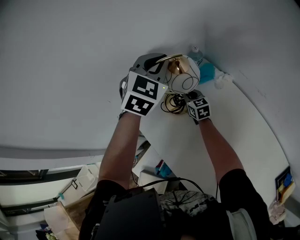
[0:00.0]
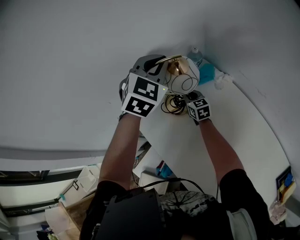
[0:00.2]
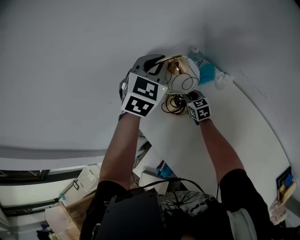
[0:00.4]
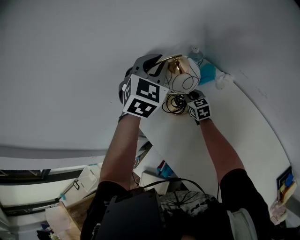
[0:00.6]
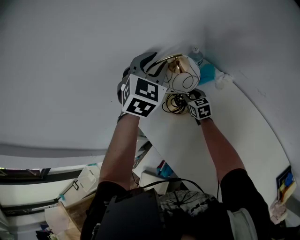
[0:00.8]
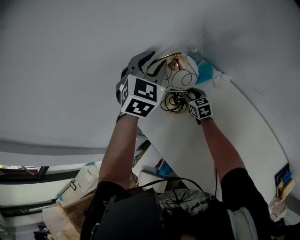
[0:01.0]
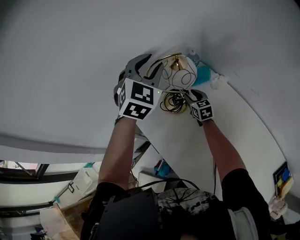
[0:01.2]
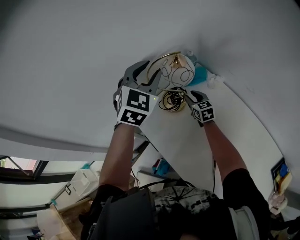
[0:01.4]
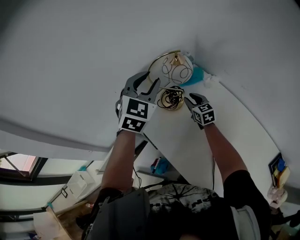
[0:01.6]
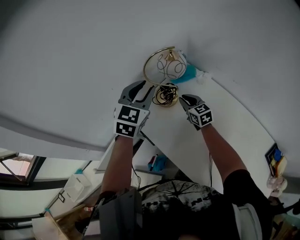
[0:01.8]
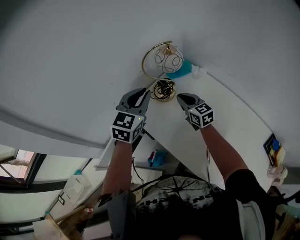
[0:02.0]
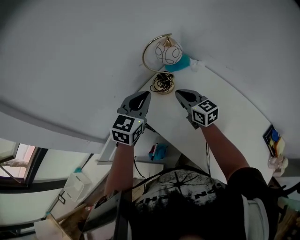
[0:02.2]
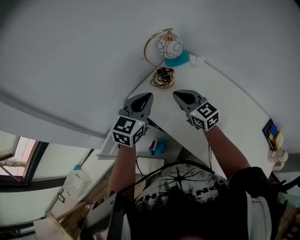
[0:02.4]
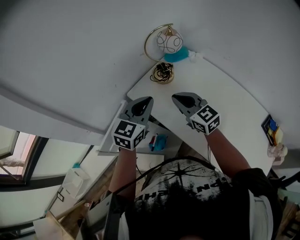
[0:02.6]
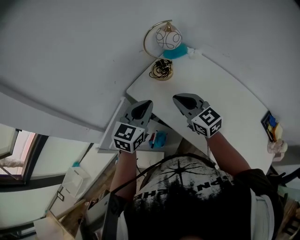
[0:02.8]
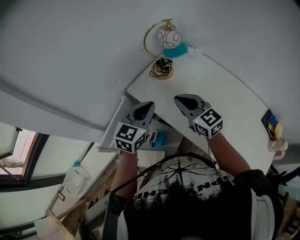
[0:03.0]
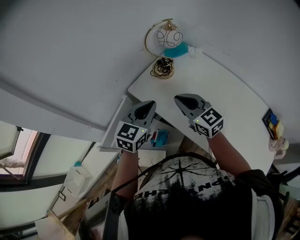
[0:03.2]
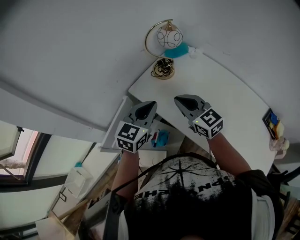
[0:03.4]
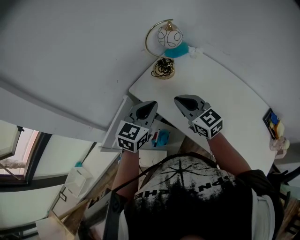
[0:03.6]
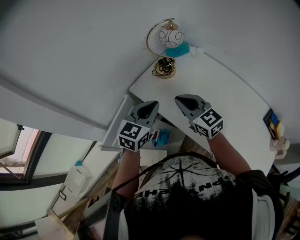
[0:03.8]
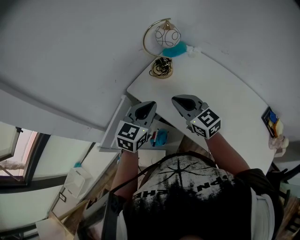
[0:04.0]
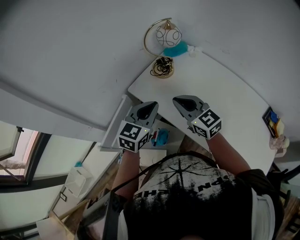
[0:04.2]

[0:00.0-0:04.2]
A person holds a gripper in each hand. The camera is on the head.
0.0 to 1.4 s: Both grippers move backward, about 5 cm. The left gripper opens; the right gripper opens.
1.4 to 2.8 s: The left gripper is displaced backward and downward by about 30 cm, turns by some 40 degrees, and closes its fingers. The right gripper shifts about 35 cm backward and upward, and closes.
2.8 to 4.2 s: There are only small adjustments of the grippers.

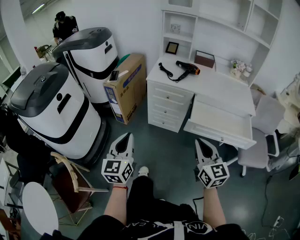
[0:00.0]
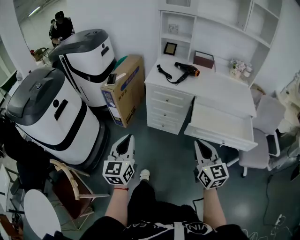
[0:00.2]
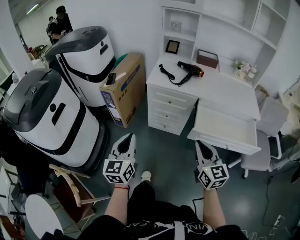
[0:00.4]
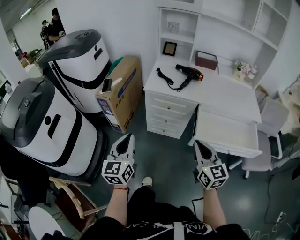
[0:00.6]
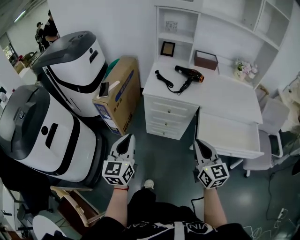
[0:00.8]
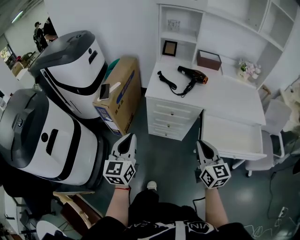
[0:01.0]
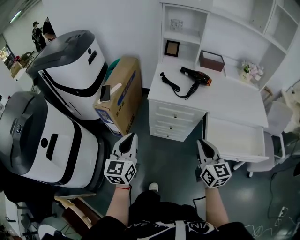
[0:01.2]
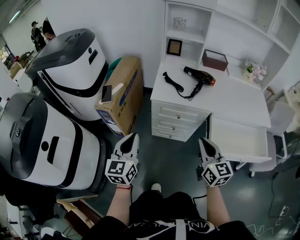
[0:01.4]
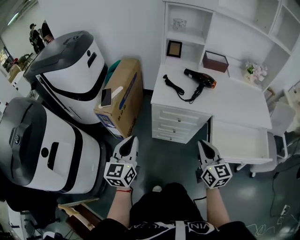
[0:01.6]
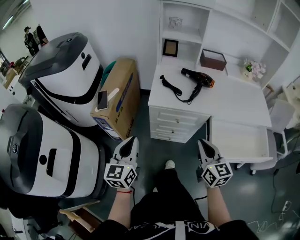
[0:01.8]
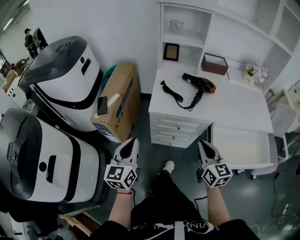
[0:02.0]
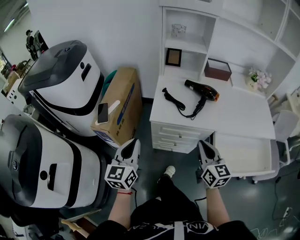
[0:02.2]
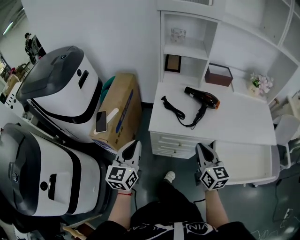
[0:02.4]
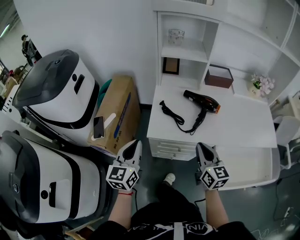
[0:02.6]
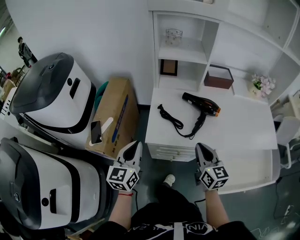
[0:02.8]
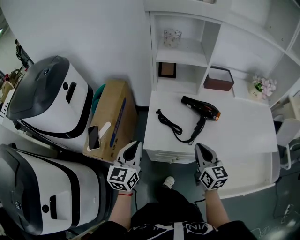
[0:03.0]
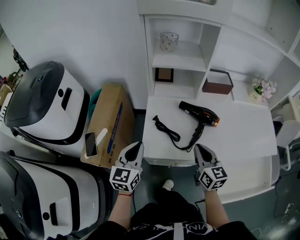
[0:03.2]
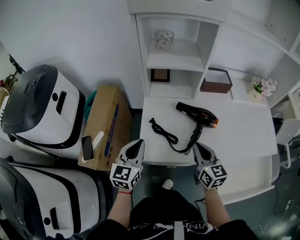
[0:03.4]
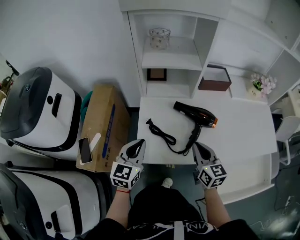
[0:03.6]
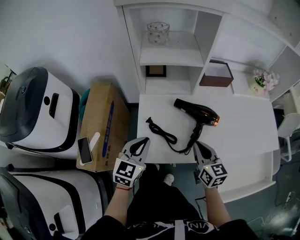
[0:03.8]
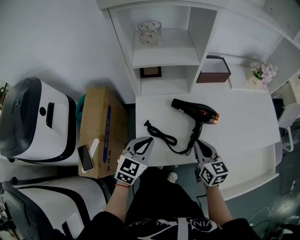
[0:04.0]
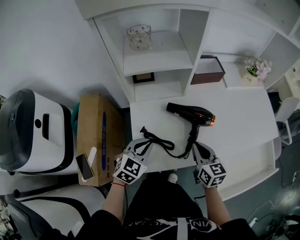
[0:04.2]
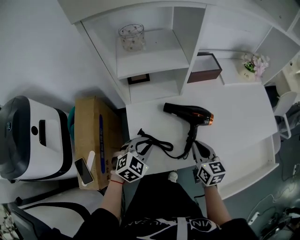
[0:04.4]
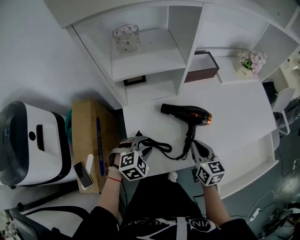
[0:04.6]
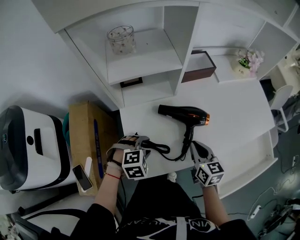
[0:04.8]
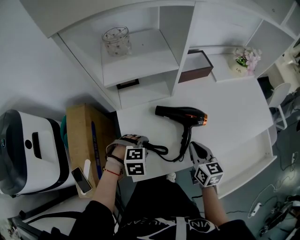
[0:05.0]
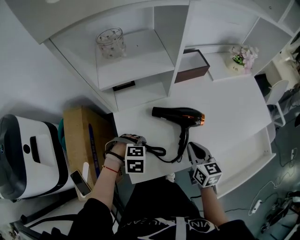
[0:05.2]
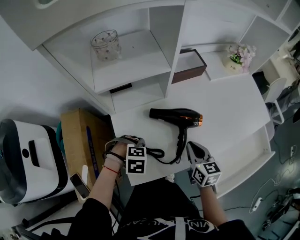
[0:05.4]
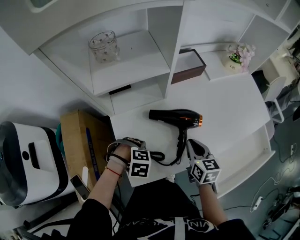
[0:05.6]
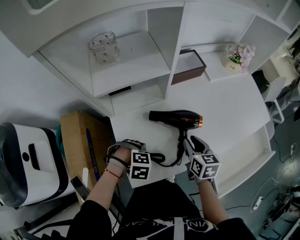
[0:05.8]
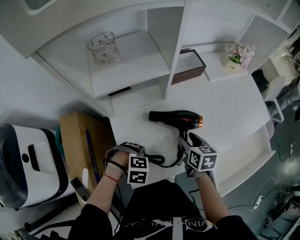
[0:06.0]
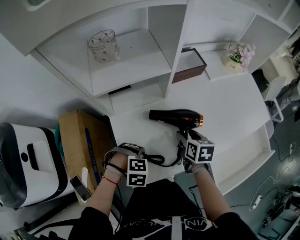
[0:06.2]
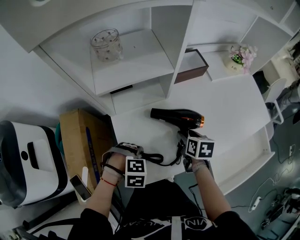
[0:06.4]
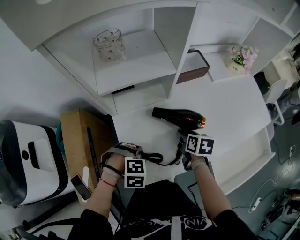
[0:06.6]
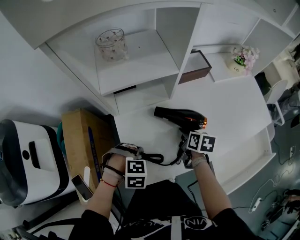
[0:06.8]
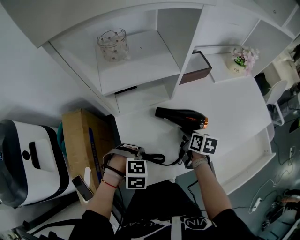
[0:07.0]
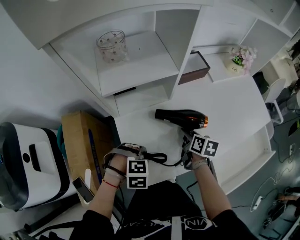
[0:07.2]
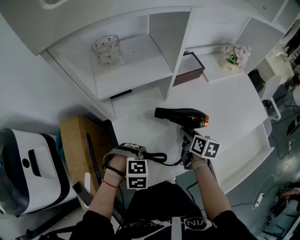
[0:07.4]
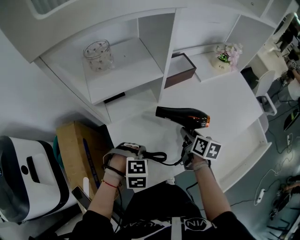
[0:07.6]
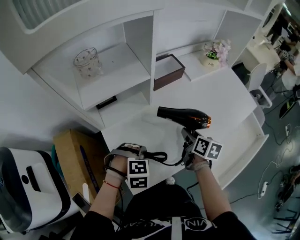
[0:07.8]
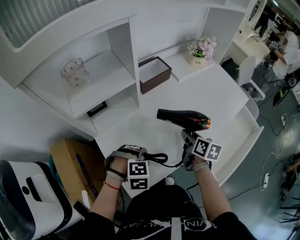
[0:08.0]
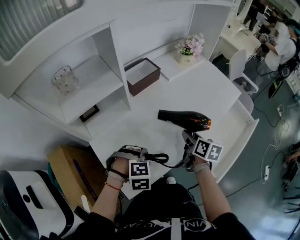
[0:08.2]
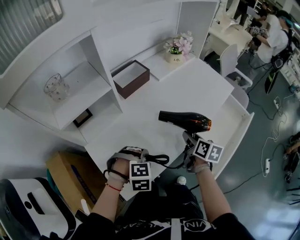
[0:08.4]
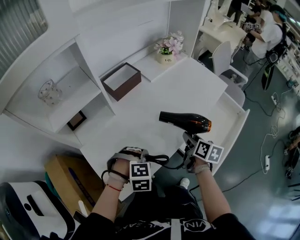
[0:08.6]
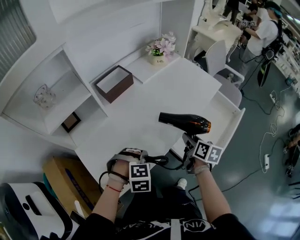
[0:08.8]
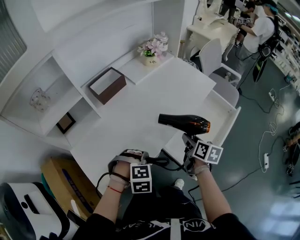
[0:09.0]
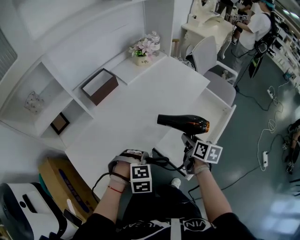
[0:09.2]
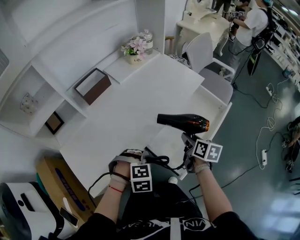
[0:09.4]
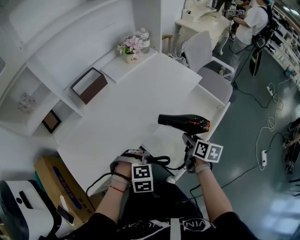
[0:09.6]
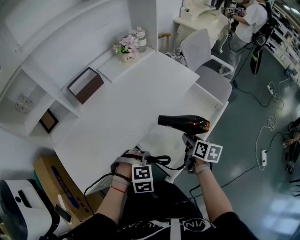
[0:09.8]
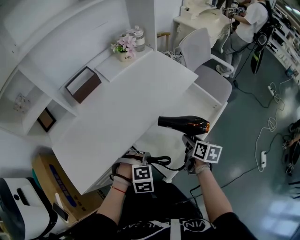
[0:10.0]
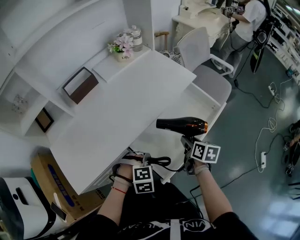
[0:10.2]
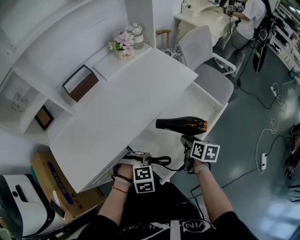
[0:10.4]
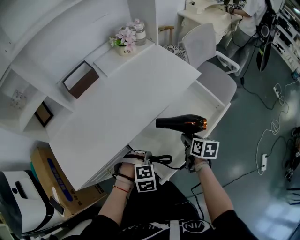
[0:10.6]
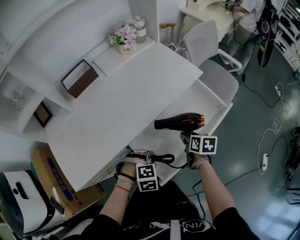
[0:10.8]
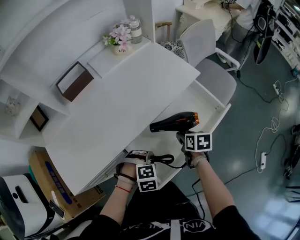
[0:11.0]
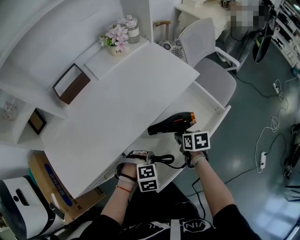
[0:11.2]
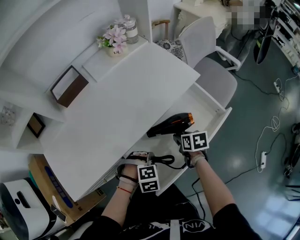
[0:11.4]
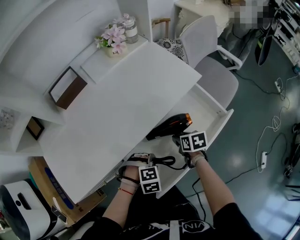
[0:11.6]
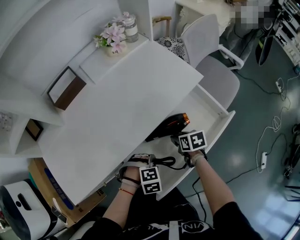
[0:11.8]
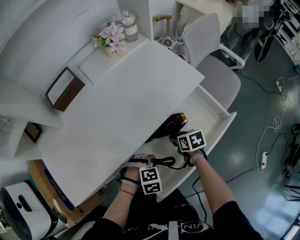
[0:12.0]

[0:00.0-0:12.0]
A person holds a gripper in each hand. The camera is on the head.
0.0 to 1.6 s: The grippers both shift forward by roughly 30 cm.
1.6 to 3.0 s: Both grippers move forward, approximately 25 cm.
3.0 to 4.4 s: The right gripper ends up approximately 15 cm from where it was, while the left gripper shifts by approximately 20 cm, and tips its fingers downward by roughly 30 degrees.
4.4 to 6.0 s: The right gripper moves some 5 cm, turns by about 20 degrees, and opens up. Meanwhile the left gripper shifts approximately 5 cm downward, tips its fingers downward by approximately 40 degrees, and opens.
6.0 to 7.6 s: The right gripper turns by approximately 20 degrees; the left gripper changes place by approximately 5 cm.
7.6 to 9.0 s: The right gripper ends up some 30 cm from where it was, and turns by approximately 20 degrees. Meanwhile the left gripper ends up roughly 25 cm from where it was.
9.0 to 10.4 s: The grippers both shift to the right by roughly 20 cm.
10.4 to 12.0 s: The right gripper ends up approximately 15 cm from where it was, and rotates about 30 degrees; the left gripper ends up roughly 10 cm from where it was.

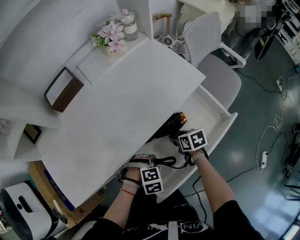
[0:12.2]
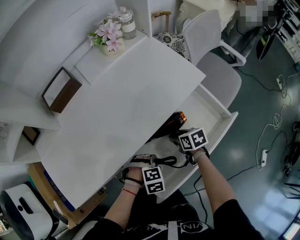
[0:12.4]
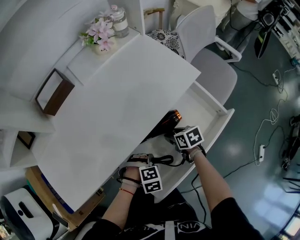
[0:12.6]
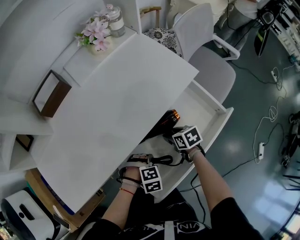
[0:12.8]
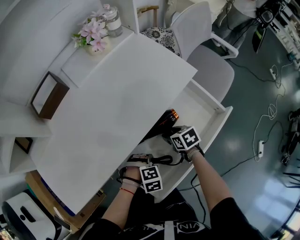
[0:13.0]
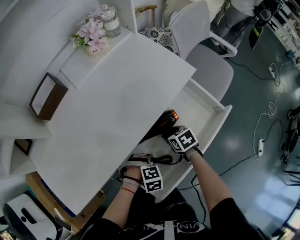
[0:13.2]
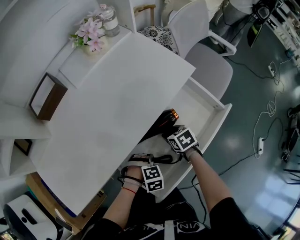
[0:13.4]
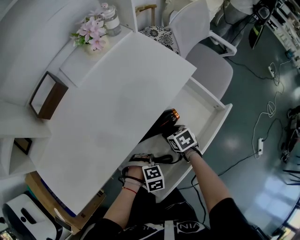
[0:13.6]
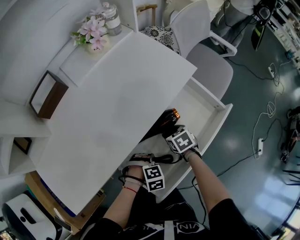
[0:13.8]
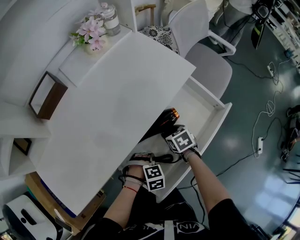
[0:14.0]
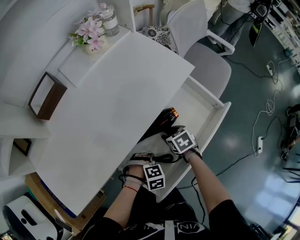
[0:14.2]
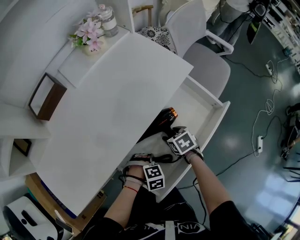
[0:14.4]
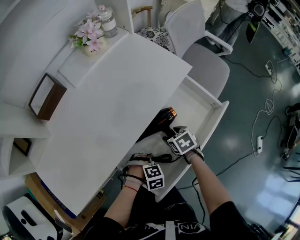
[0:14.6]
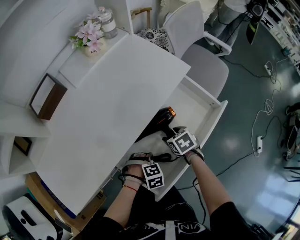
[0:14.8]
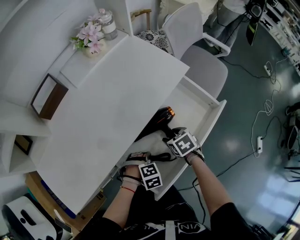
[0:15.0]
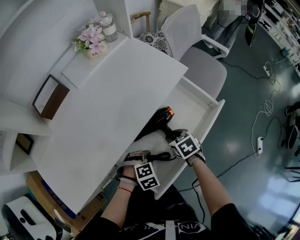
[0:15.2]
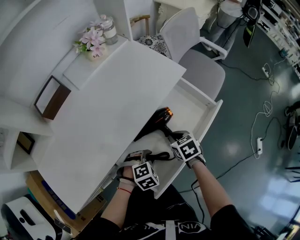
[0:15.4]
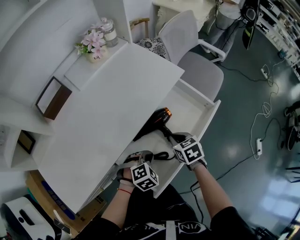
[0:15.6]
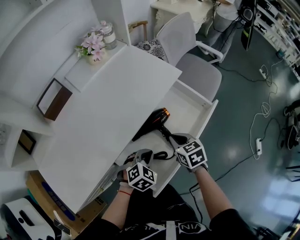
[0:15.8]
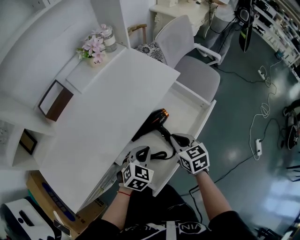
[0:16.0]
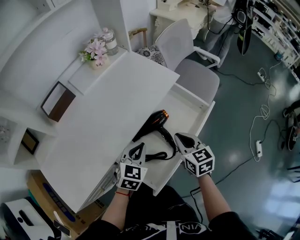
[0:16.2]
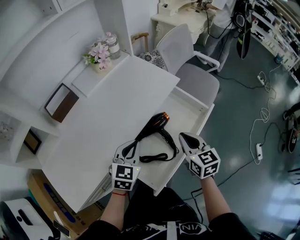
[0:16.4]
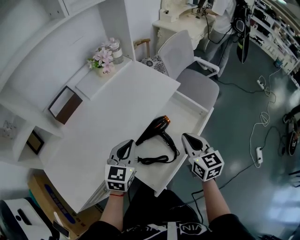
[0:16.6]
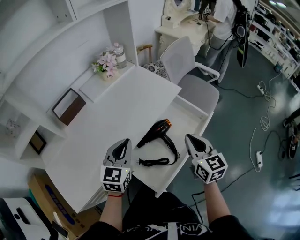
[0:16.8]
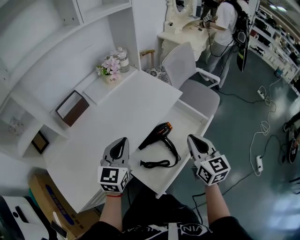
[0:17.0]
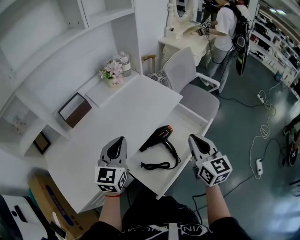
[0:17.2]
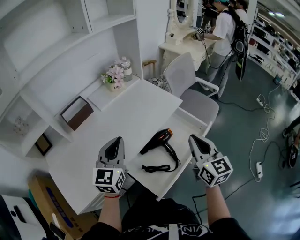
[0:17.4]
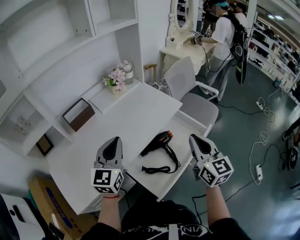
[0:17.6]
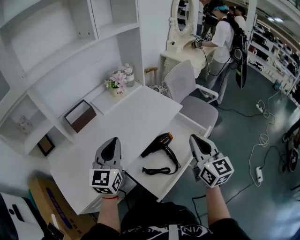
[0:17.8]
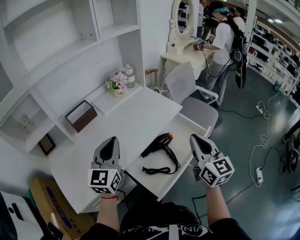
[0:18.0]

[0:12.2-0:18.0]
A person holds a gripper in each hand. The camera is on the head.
12.2 to 13.6 s: The left gripper ends up approximately 5 cm from where it was.
13.6 to 15.0 s: The right gripper ends up about 5 cm from where it was.
15.0 to 16.6 s: The grippers both shift upward by about 25 cm. The right gripper tips its fingers upward by roughly 40 degrees, and closes its fingers. The left gripper tips its fingers upward by some 60 degrees, and closes its fingers.
16.6 to 18.0 s: The right gripper is displaced upward by about 15 cm. The left gripper goes about 20 cm upward and to the left, and turns by roughly 30 degrees.

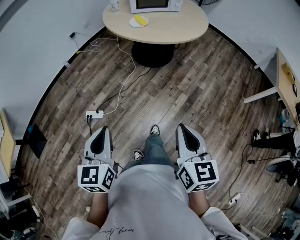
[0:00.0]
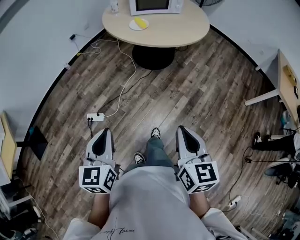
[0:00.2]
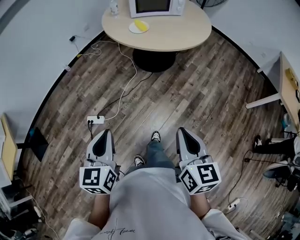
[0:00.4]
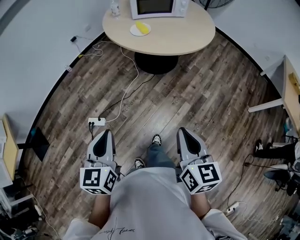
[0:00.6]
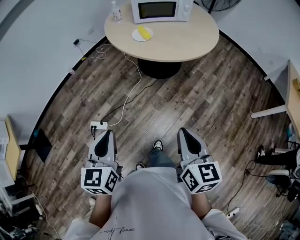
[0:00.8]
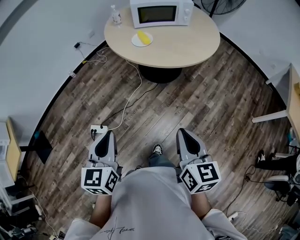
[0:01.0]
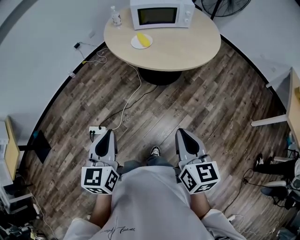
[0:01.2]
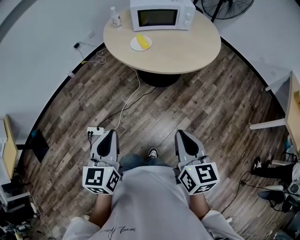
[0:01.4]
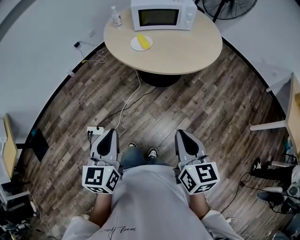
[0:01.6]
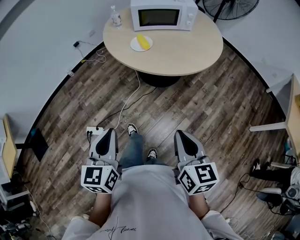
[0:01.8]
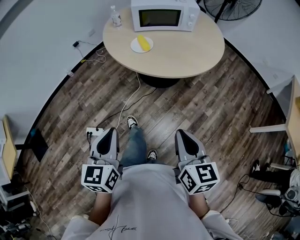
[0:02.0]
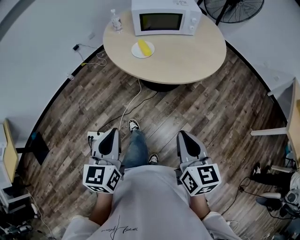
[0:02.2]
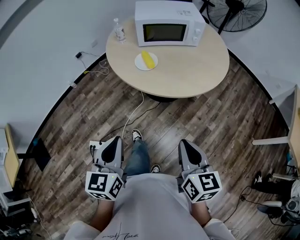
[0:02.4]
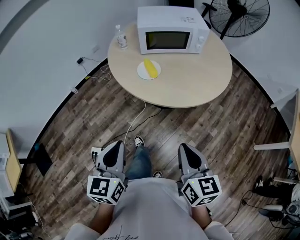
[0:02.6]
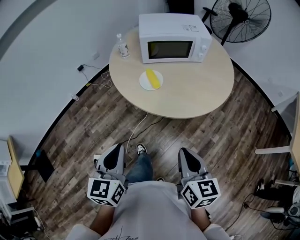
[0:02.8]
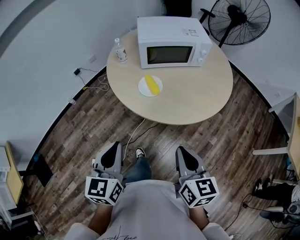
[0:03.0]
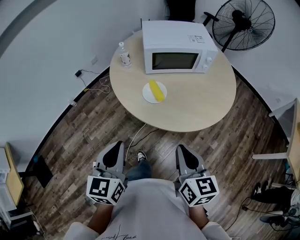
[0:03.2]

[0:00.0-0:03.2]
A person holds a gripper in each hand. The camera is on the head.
0.0 to 1.6 s: The left gripper travels forward and to the right by some 25 cm; the right gripper heads forward, covering approximately 25 cm.
1.6 to 3.2 s: Both grippers travel together forward, some 30 cm.
